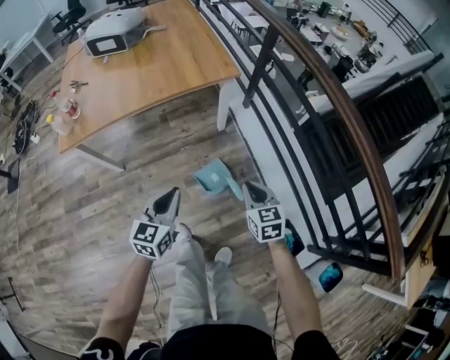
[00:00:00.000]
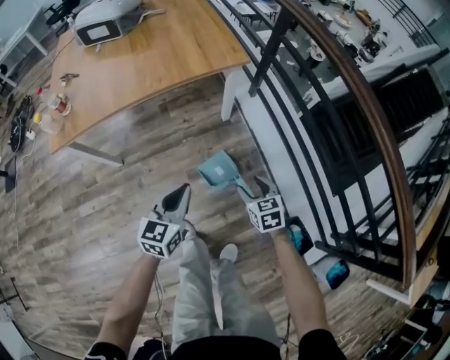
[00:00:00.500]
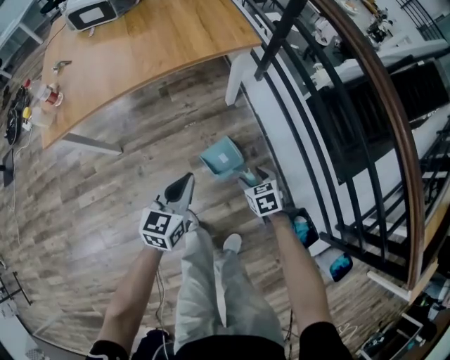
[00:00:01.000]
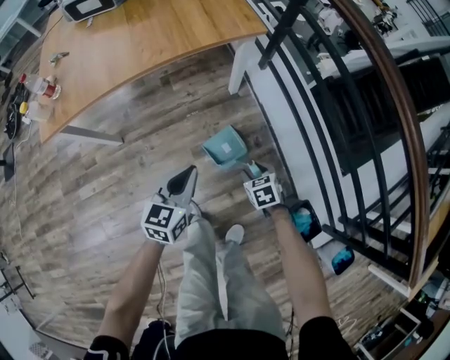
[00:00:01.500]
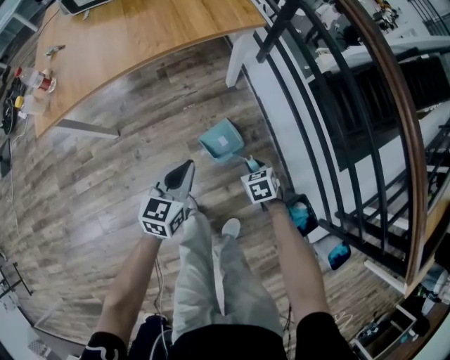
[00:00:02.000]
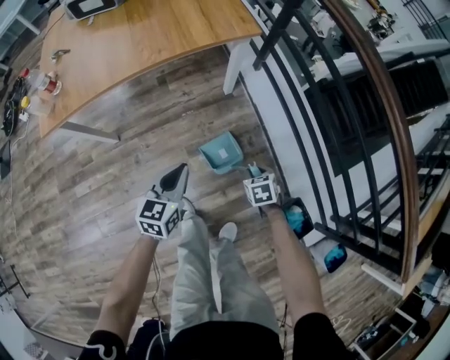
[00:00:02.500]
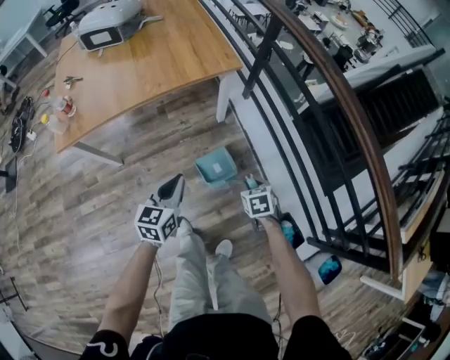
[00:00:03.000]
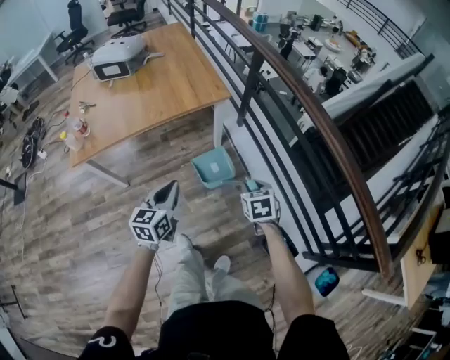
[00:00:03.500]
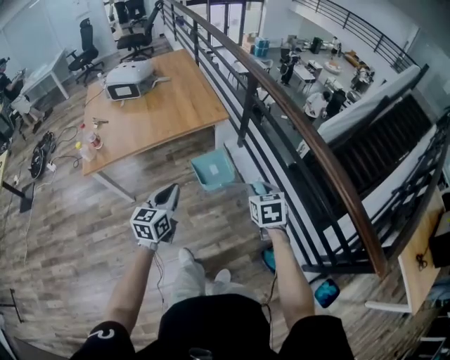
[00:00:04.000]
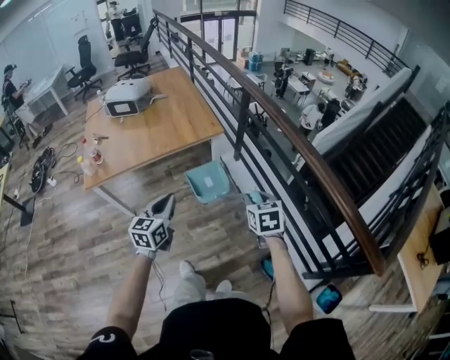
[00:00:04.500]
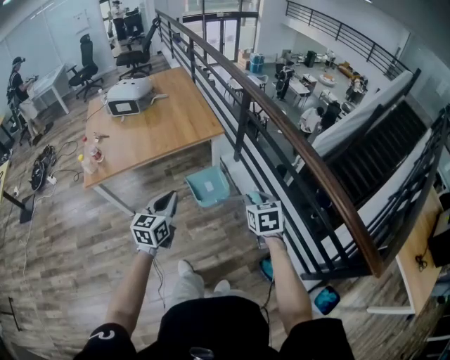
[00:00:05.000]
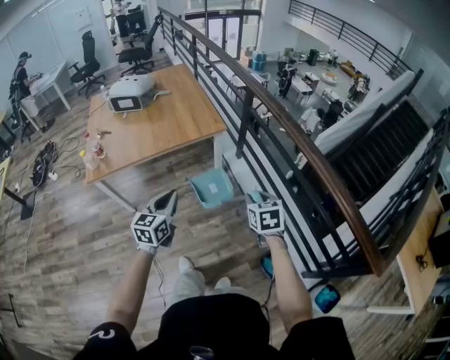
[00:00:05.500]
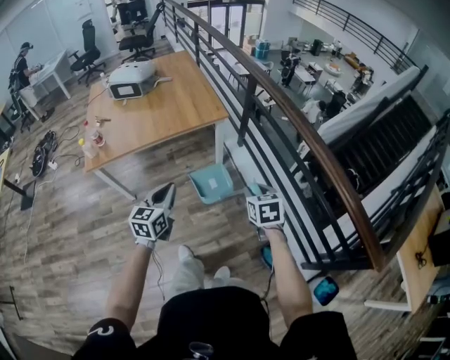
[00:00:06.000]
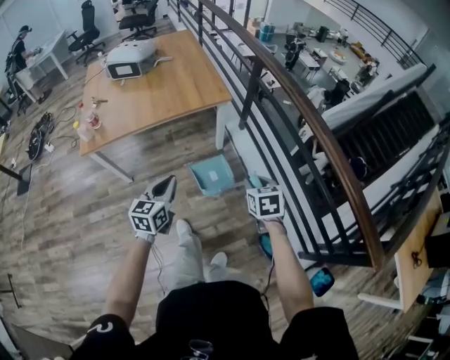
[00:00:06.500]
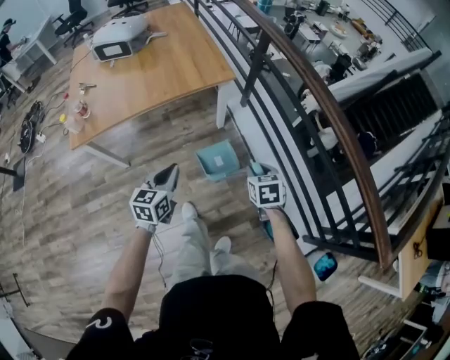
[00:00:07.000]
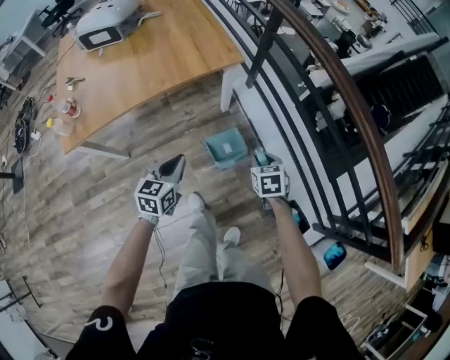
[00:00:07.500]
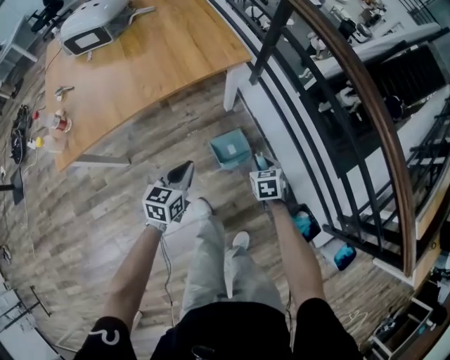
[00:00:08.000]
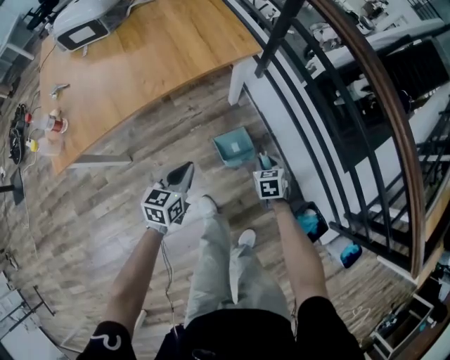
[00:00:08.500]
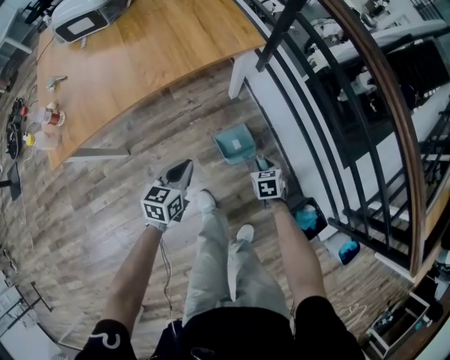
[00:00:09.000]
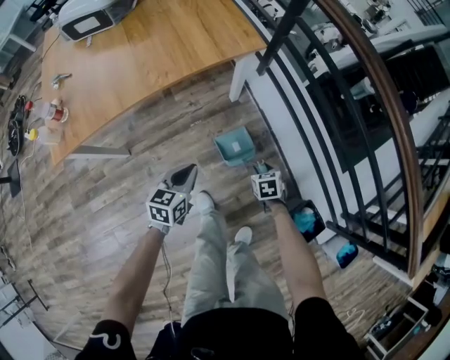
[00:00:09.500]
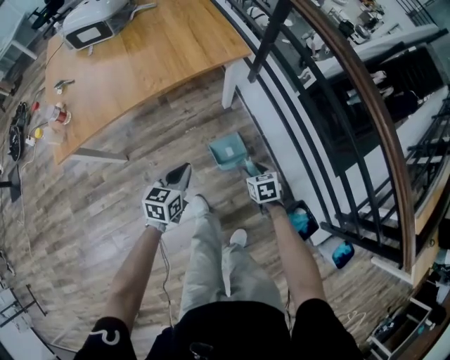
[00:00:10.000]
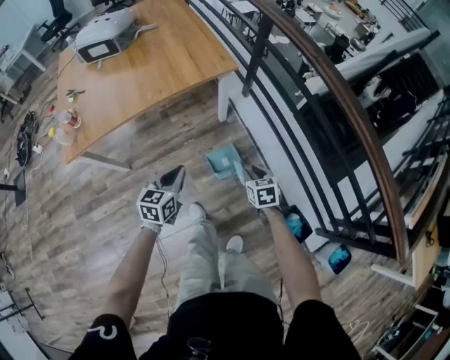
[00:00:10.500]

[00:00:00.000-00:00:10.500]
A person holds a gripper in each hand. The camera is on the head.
00:00:00.000 to 00:00:02.000: The left gripper moves downward and forward, roughly 15 cm. The right gripper heads downward, covering roughly 25 cm, rotates some 30 degrees, and opens, then closes again.
00:00:02.000 to 00:00:04.000: The left gripper heads upward, covering approximately 30 cm. Meanwhile the right gripper travels upward by roughly 40 cm, and rotates some 30 degrees.
00:00:04.000 to 00:00:06.500: The grippers make only small movements.
00:00:06.500 to 00:00:08.500: The two grippers go approximately 35 cm downward and forward.
00:00:08.500 to 00:00:10.500: Both grippers move upward and backward, approximately 15 cm. The right gripper opens, then closes again.

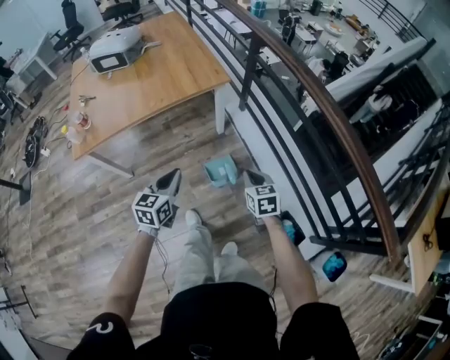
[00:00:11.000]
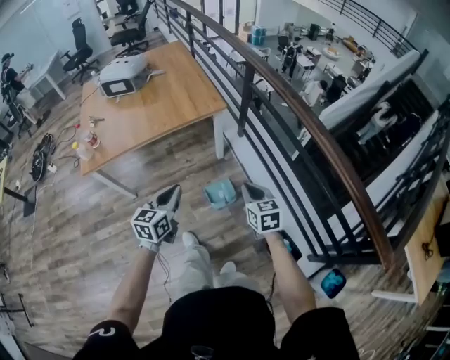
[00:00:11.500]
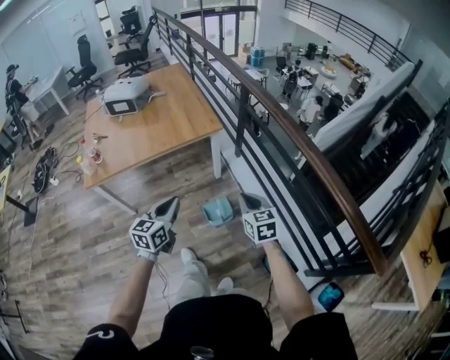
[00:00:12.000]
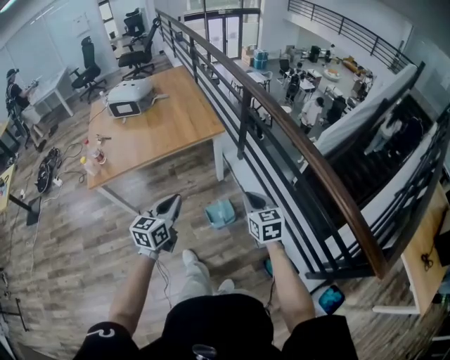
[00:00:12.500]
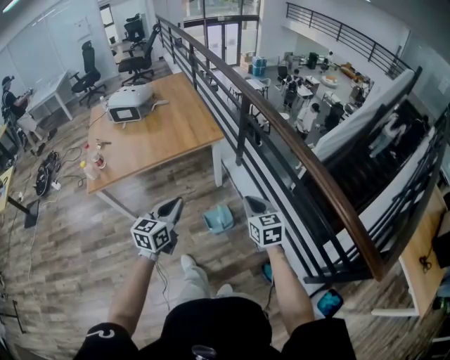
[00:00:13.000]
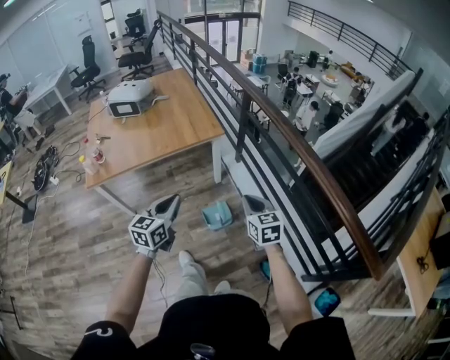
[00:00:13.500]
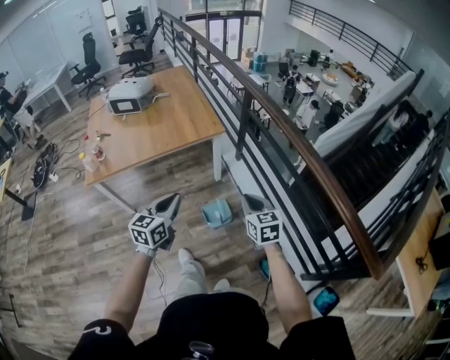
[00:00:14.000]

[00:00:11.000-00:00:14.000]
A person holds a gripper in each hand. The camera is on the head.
00:00:11.000 to 00:00:12.500: Both grippers move upward, approximately 15 cm.
00:00:12.500 to 00:00:14.000: The grippers move only a little.

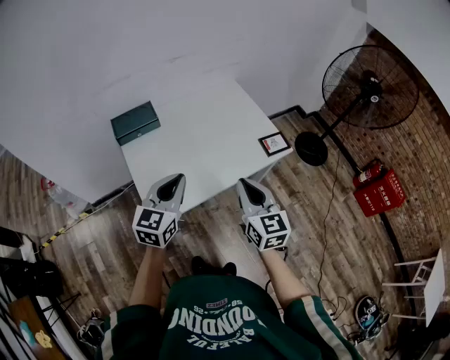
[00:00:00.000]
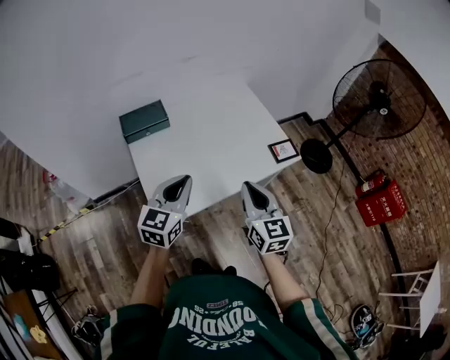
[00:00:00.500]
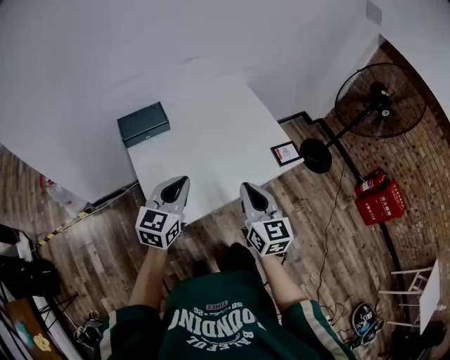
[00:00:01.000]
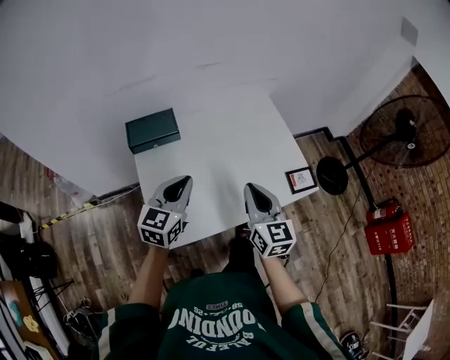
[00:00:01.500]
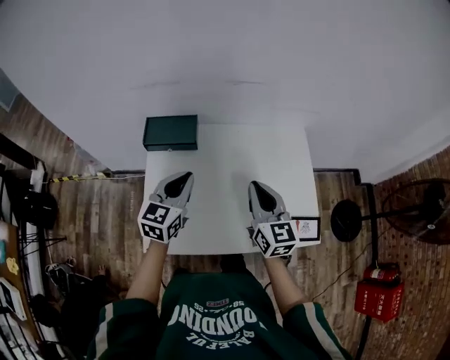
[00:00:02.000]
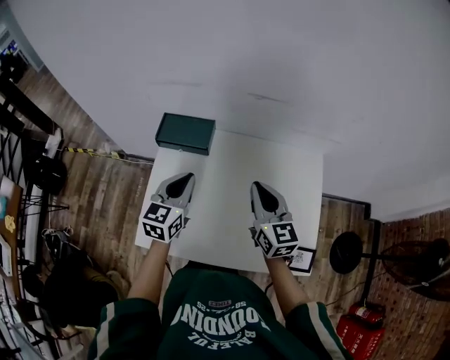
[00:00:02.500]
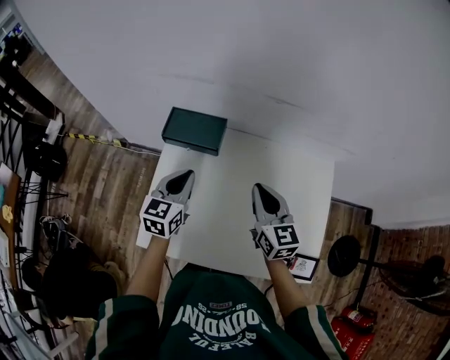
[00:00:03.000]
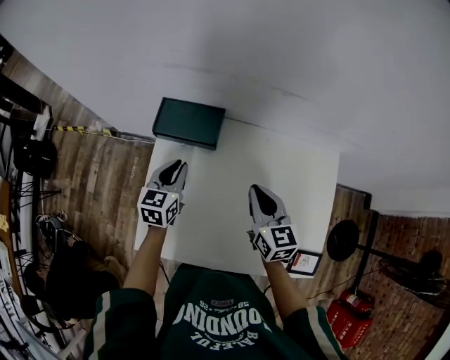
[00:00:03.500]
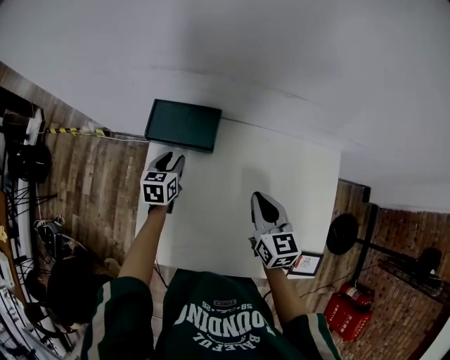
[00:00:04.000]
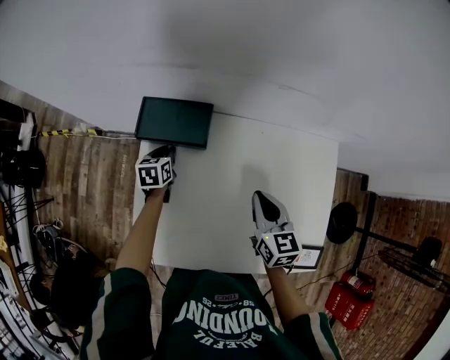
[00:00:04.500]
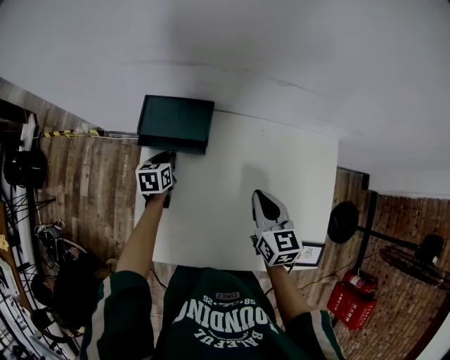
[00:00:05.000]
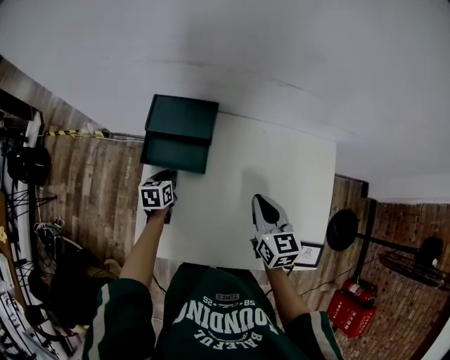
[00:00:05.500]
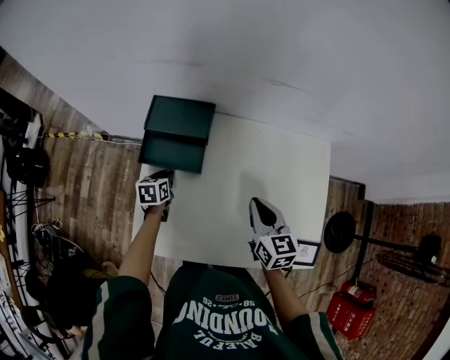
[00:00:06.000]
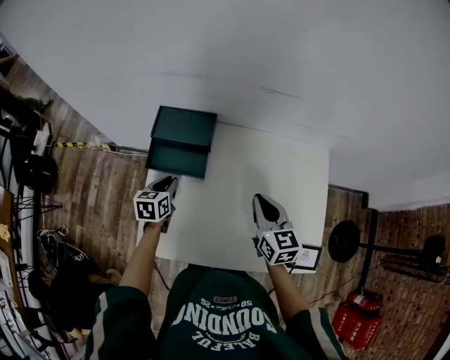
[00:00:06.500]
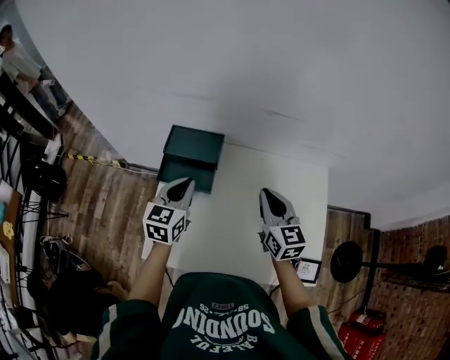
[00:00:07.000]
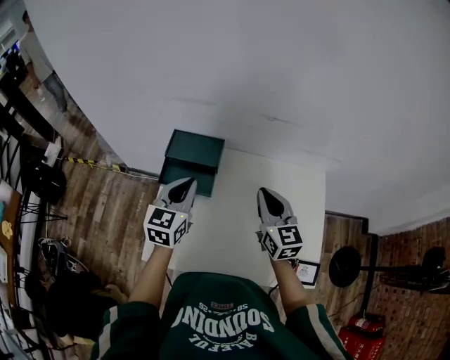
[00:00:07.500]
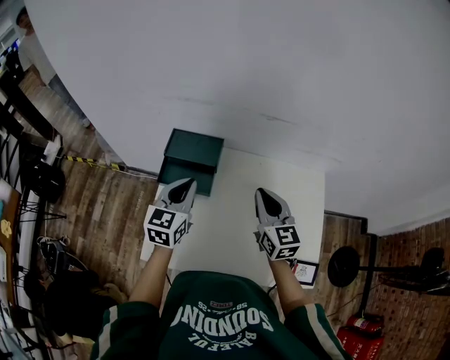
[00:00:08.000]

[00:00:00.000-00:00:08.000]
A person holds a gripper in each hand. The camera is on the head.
00:00:00.000 to 00:00:02.000: The grippers both shift forward by about 30 cm. The right gripper rotates roughly 20 degrees. Meanwhile the left gripper changes its angle by roughly 30 degrees.
00:00:02.000 to 00:00:04.000: The right gripper travels forward and downward by about 15 cm, and changes its angle by some 20 degrees, while the left gripper moves downward, forward and to the left, about 30 cm, changes its angle by about 30 degrees, and opens.
00:00:04.000 to 00:00:06.000: The right gripper moves backward, approximately 5 cm, while the left gripper goes about 10 cm backward and downward.
00:00:06.000 to 00:00:08.000: The right gripper travels upward by some 10 cm, while the left gripper goes approximately 30 cm upward, and angles its fingers upward, by roughly 30 degrees.

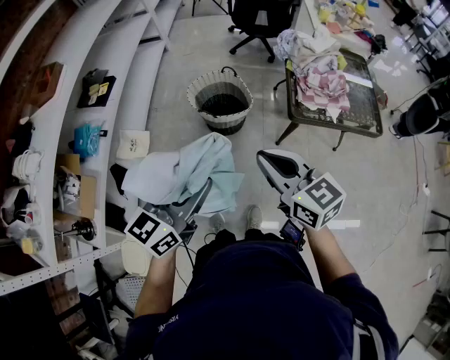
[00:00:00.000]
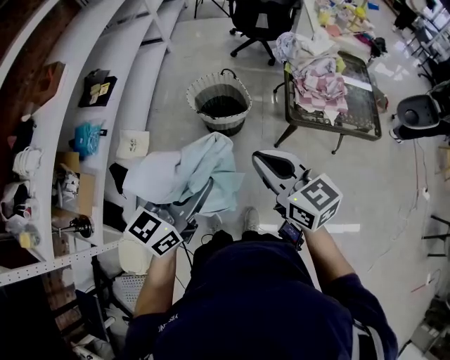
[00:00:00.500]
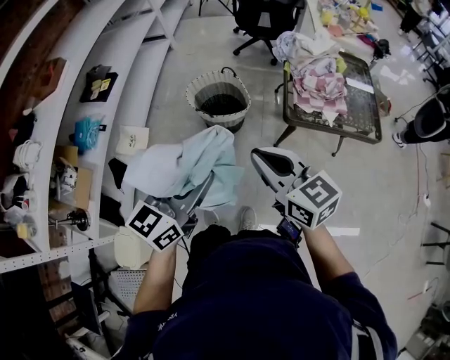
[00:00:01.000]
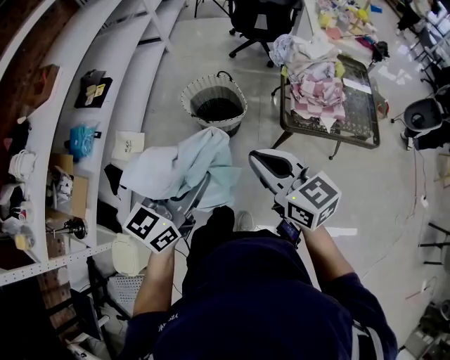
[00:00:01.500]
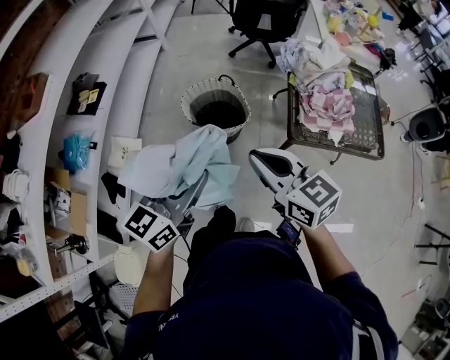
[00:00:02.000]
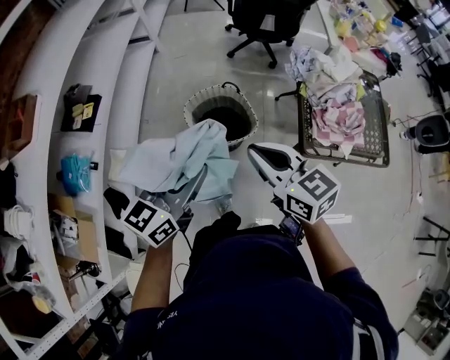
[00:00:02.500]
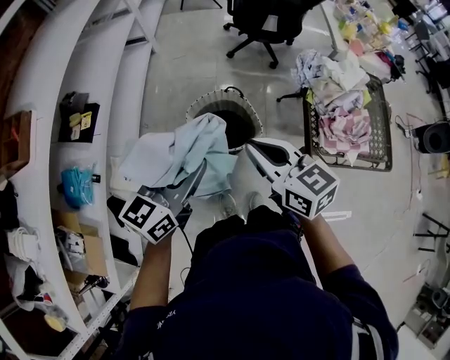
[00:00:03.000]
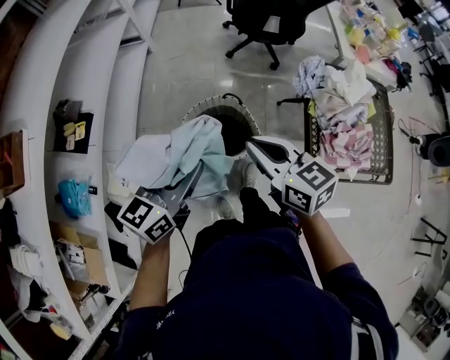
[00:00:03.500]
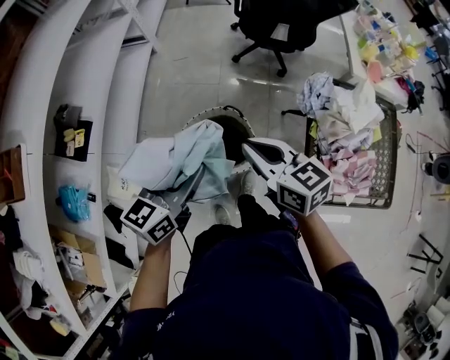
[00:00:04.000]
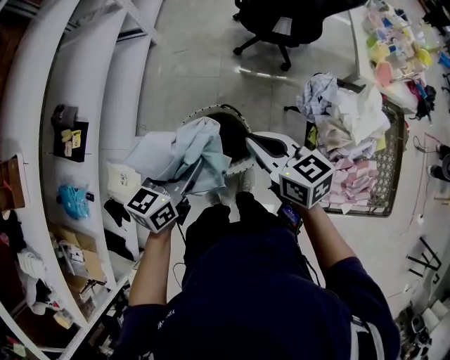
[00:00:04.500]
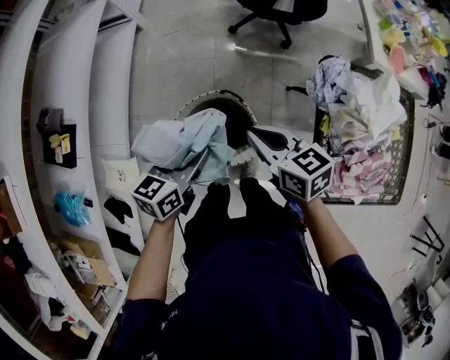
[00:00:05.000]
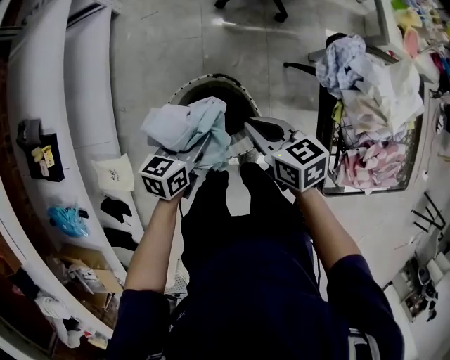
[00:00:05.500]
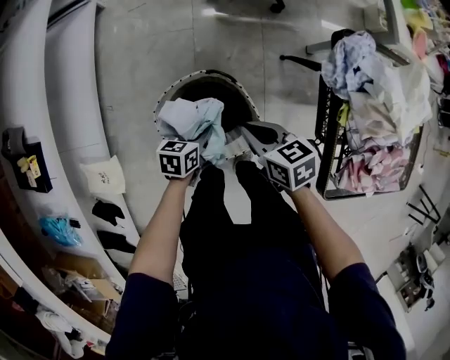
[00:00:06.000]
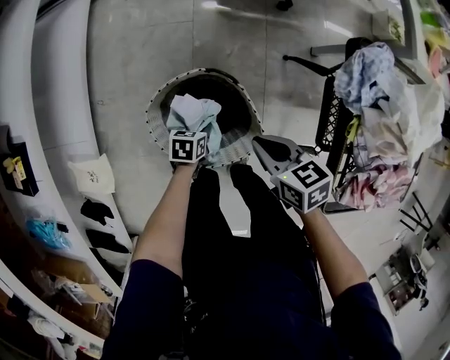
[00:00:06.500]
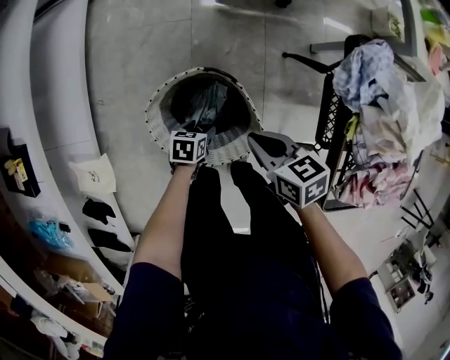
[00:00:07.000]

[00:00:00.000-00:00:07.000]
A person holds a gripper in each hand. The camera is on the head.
00:00:00.000 to 00:00:02.000: The two grippers go some 15 cm forward.
00:00:02.000 to 00:00:03.500: The grippers both shift forward by about 30 cm.
00:00:03.500 to 00:00:05.000: The right gripper shifts approximately 20 cm forward and downward. Meanwhile the left gripper travels forward, downward and to the right by roughly 25 cm.
00:00:05.000 to 00:00:07.000: The right gripper moves downward, roughly 20 cm; the left gripper shifts about 40 cm downward, points its fingers some 30 degrees further downward, and opens up.
